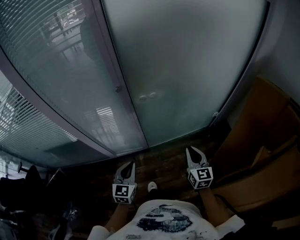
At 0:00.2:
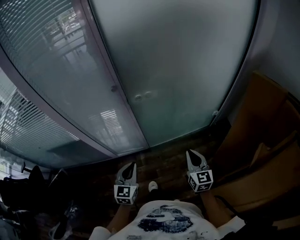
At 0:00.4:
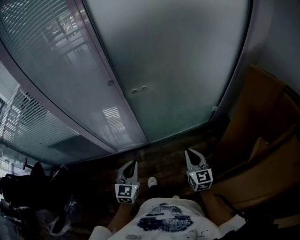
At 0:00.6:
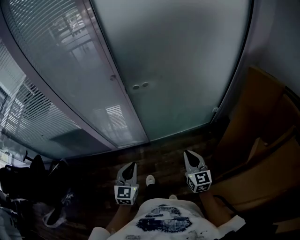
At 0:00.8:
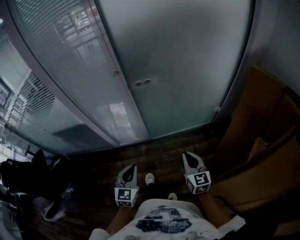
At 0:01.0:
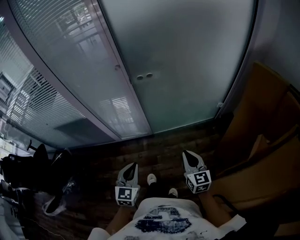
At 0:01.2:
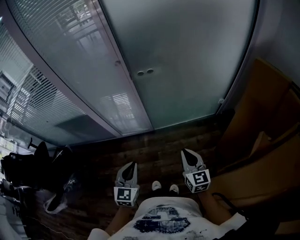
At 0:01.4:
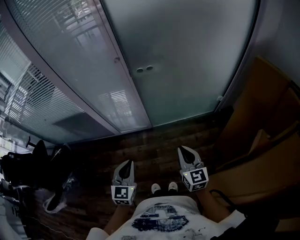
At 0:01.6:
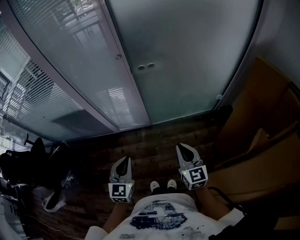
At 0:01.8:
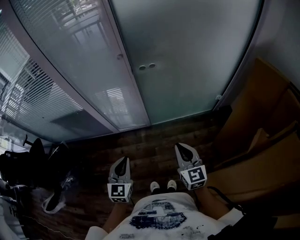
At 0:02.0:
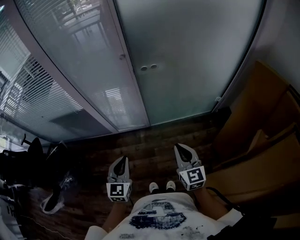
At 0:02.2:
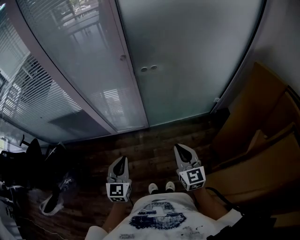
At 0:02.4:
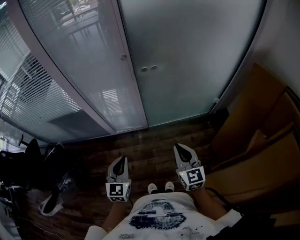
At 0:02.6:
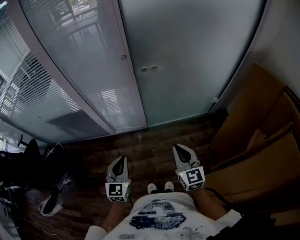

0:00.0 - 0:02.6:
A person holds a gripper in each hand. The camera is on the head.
0:00.0 - 0:01.2: The two grippers go some 15 cm backward.
0:01.2 - 0:02.6: Both grippers travel together to the left, some 5 cm.

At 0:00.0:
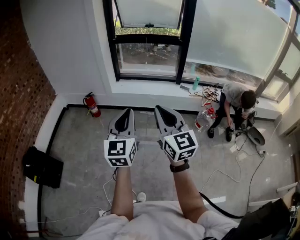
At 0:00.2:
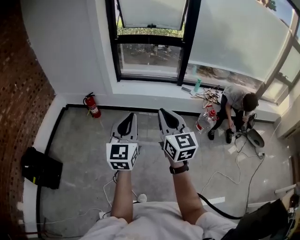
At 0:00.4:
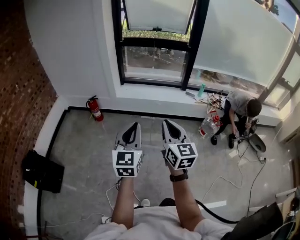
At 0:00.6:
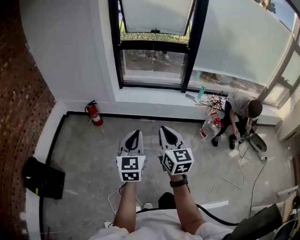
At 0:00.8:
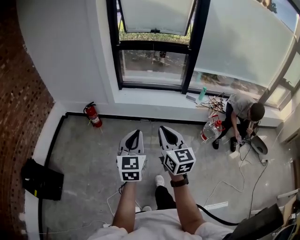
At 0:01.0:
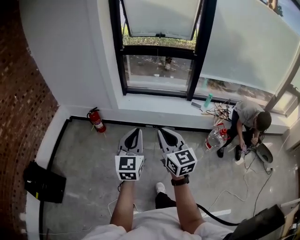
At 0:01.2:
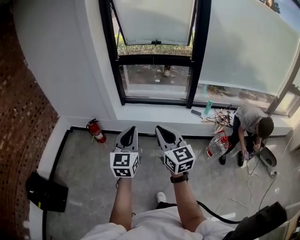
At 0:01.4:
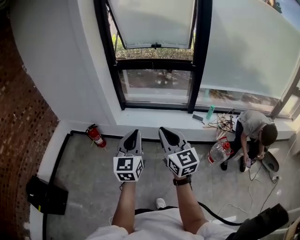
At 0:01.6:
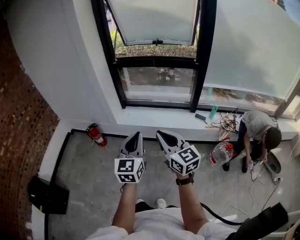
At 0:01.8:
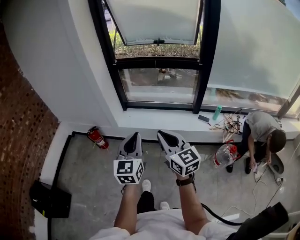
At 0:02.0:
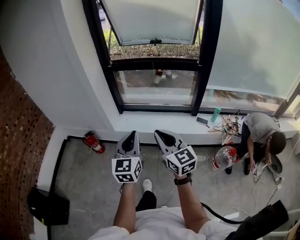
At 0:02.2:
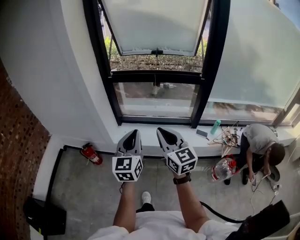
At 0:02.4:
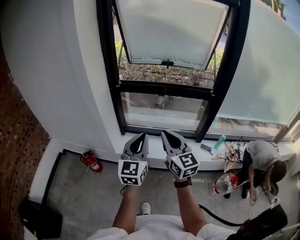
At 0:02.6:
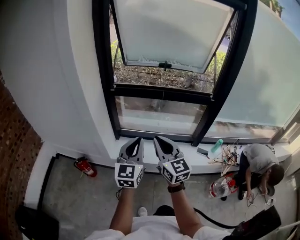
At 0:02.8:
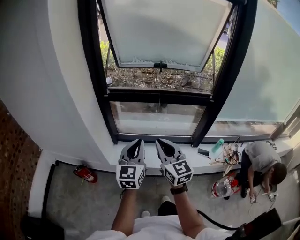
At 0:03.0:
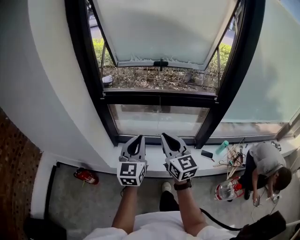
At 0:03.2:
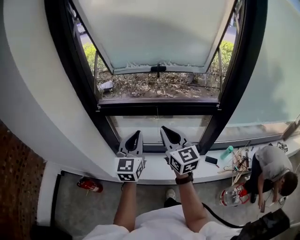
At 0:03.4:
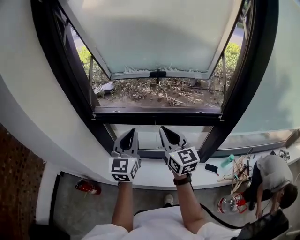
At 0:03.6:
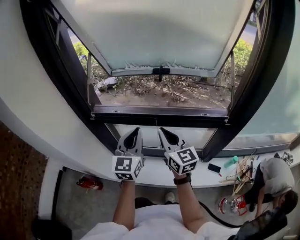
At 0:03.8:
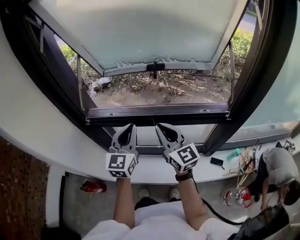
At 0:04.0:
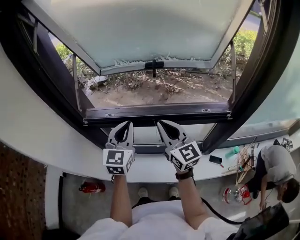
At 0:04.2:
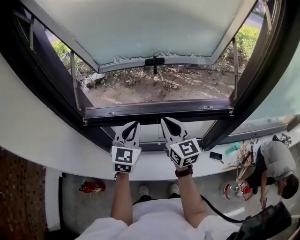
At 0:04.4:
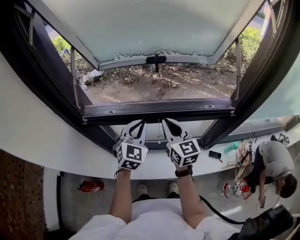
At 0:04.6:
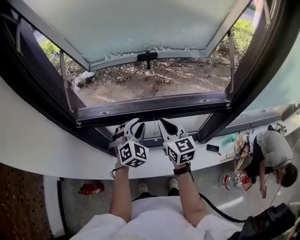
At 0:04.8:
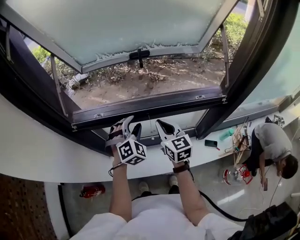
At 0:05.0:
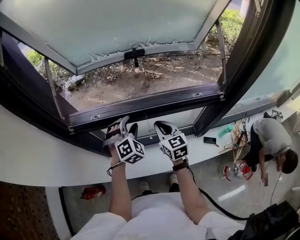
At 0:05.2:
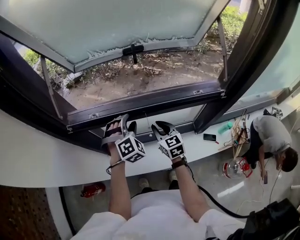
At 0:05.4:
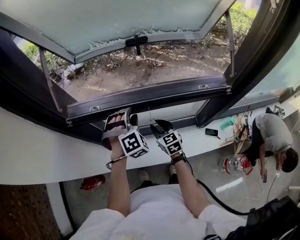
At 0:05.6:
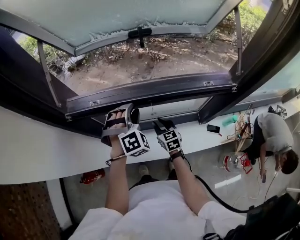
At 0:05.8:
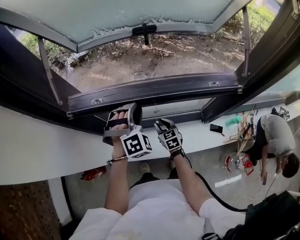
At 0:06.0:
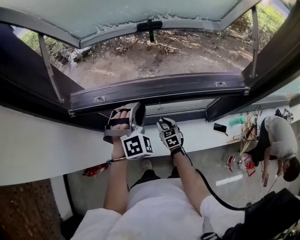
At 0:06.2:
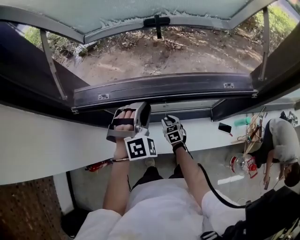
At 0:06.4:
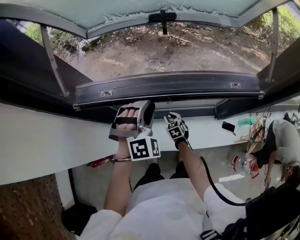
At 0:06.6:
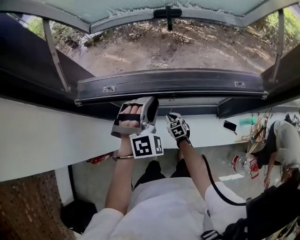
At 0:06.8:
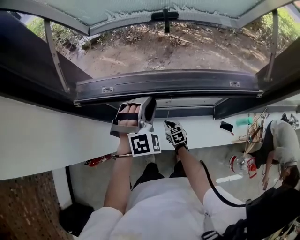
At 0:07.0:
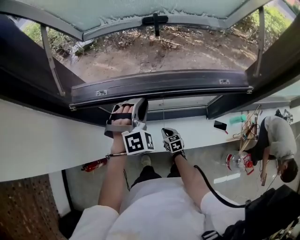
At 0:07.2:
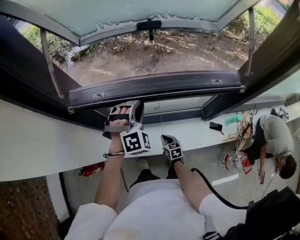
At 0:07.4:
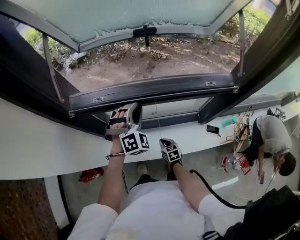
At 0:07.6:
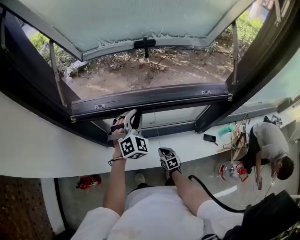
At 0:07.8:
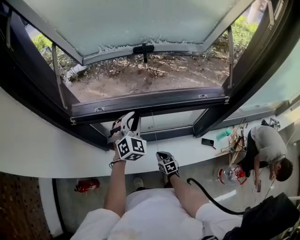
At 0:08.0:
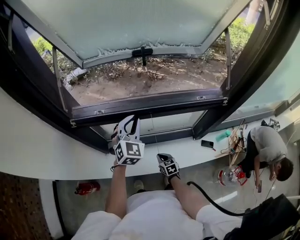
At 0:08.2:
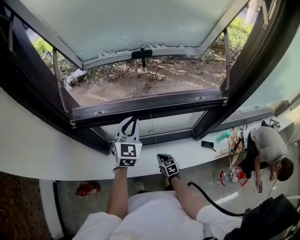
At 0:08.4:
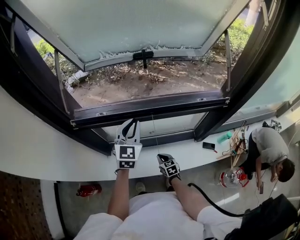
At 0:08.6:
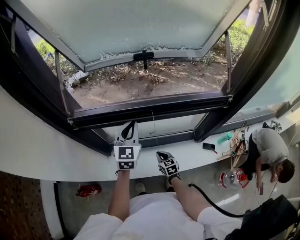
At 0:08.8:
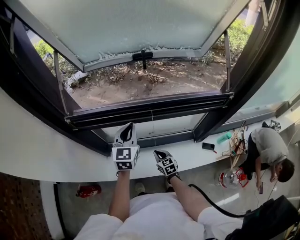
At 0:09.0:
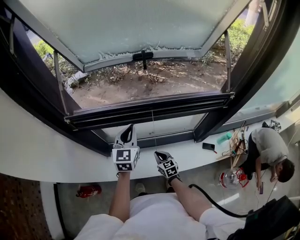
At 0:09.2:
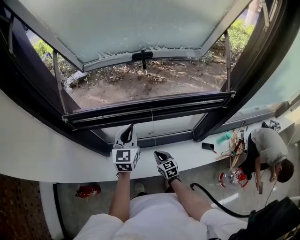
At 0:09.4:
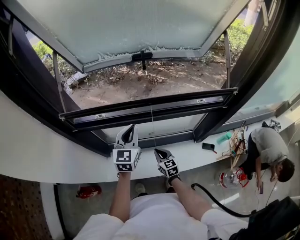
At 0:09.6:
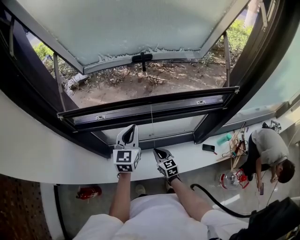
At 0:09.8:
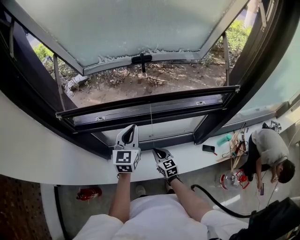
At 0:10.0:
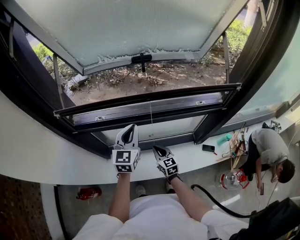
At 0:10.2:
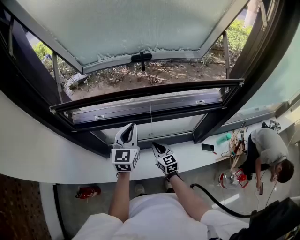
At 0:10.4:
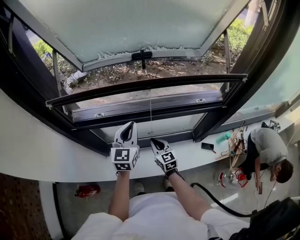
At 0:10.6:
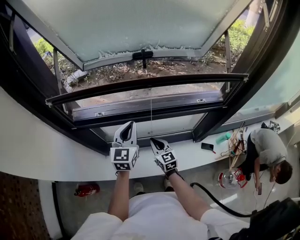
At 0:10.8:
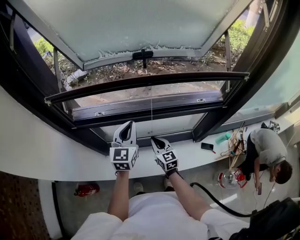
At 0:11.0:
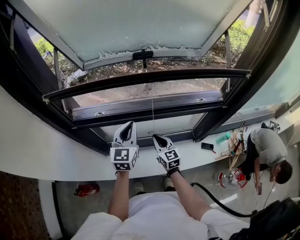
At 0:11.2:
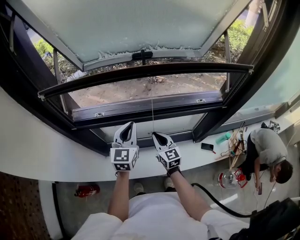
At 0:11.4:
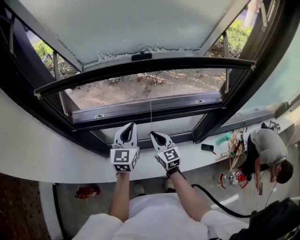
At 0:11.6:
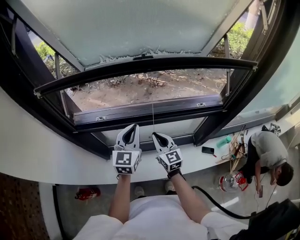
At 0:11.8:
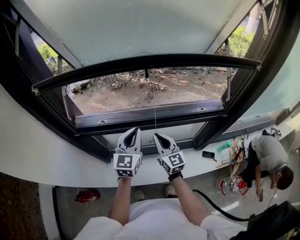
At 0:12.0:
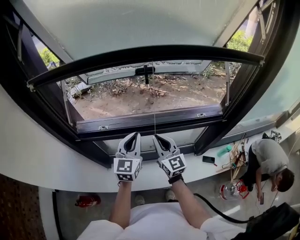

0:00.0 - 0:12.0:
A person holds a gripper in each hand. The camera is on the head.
0:00.0 - 0:01.6: Both grippers move forward, approximately 40 cm.
0:01.6 - 0:03.0: The two grippers travel together, forward, approximately 50 cm.
0:03.0 - 0:04.4: The two grippers go approximately 30 cm forward. The left gripper turns by some 30 degrees.
0:04.4 - 0:06.0: The left gripper heads downward, covering about 5 cm, rotates around the line of its fingers by approximately 40 degrees, clockwise from behind, and opens its fingers; the right gripper travels downward by some 35 cm, tips its fingers downward by approximately 30 degrees, and opens up.
0:06.0 - 0:07.6: The right gripper goes about 15 cm backward and downward, and closes up.
0:07.6 - 0:09.0: The left gripper rolls counterclockwise, seen from behind, by approximately 50 degrees. Meanwhile the right gripper is displaced upward by some 5 cm.
0:09.0 - 0:10.4: The right gripper shifts roughly 10 cm upward and forward.
0:10.4 - 0:12.0: The right gripper heads upward, covering some 15 cm, and swivels about 20 degrees.

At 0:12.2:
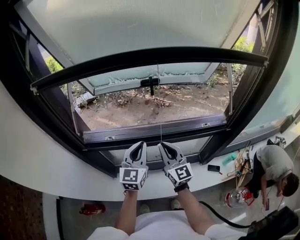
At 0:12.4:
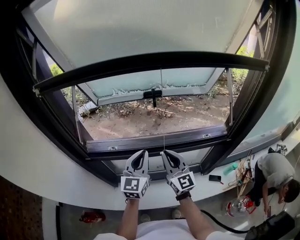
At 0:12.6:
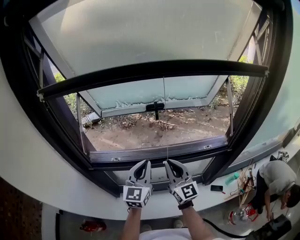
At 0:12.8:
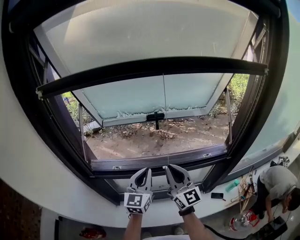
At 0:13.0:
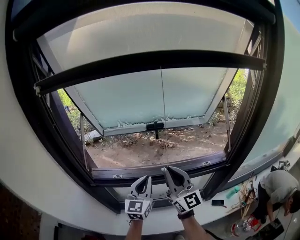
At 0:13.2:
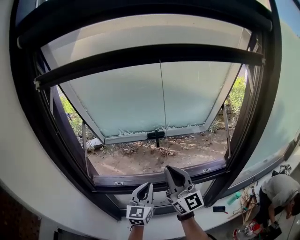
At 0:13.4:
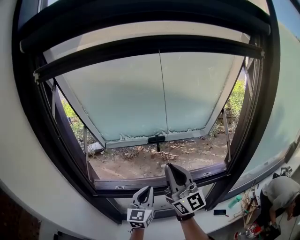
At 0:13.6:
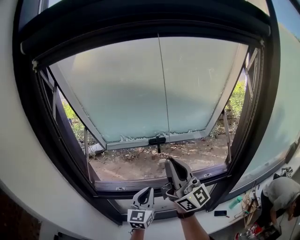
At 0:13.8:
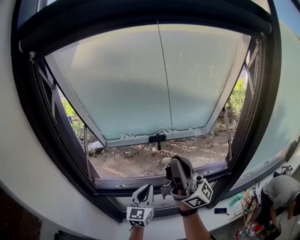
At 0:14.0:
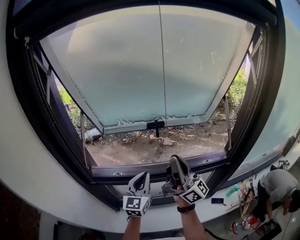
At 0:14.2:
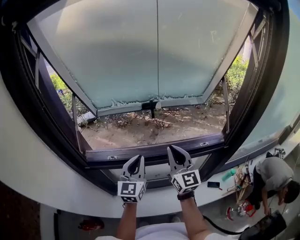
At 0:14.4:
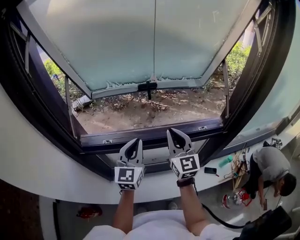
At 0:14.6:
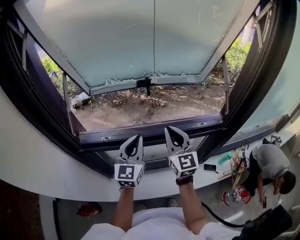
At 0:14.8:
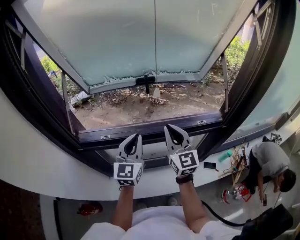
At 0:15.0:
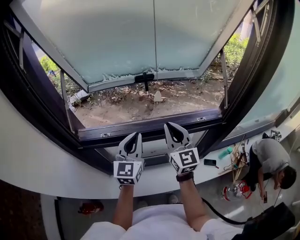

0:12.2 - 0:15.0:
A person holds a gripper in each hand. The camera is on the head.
0:12.2 - 0:13.6: The right gripper travels upward by some 30 cm, and tilts its fingers some 40 degrees upward.
0:13.6 - 0:15.0: The right gripper heads downward, covering approximately 20 cm, and points its fingers approximately 40 degrees further downward.

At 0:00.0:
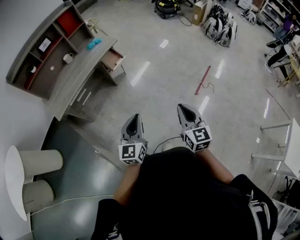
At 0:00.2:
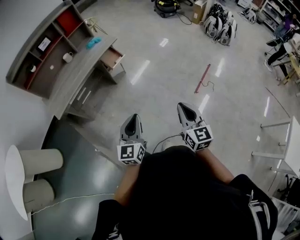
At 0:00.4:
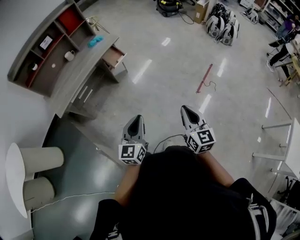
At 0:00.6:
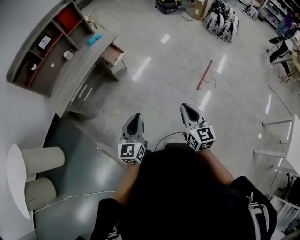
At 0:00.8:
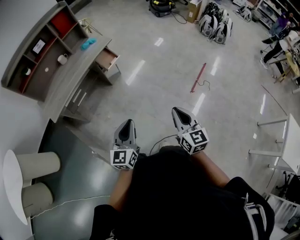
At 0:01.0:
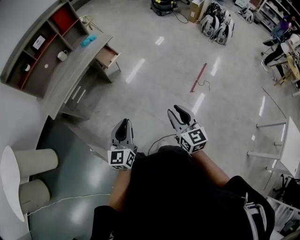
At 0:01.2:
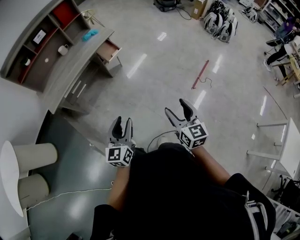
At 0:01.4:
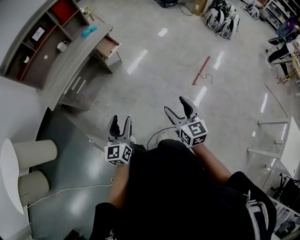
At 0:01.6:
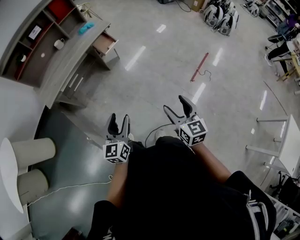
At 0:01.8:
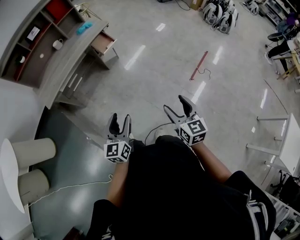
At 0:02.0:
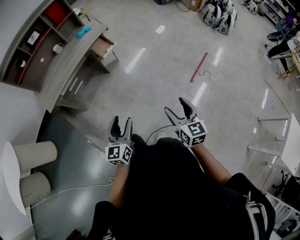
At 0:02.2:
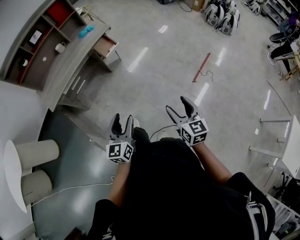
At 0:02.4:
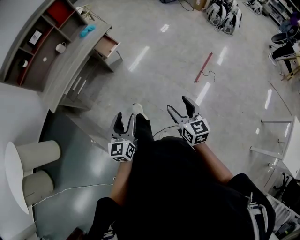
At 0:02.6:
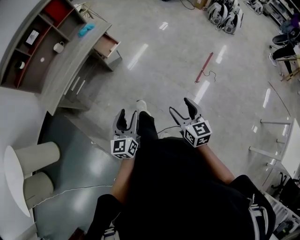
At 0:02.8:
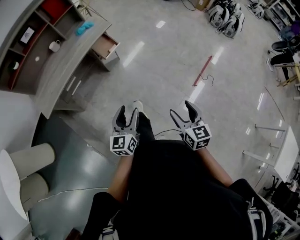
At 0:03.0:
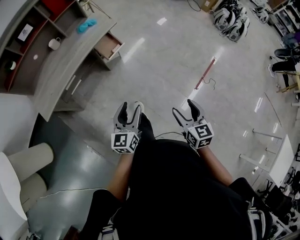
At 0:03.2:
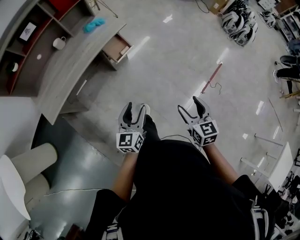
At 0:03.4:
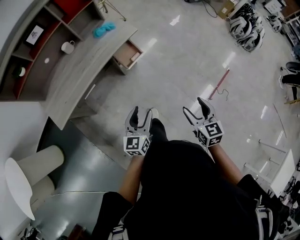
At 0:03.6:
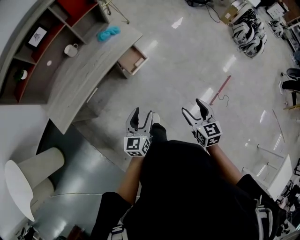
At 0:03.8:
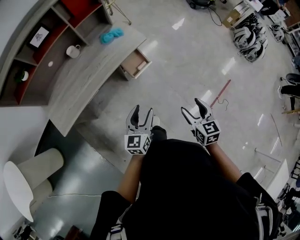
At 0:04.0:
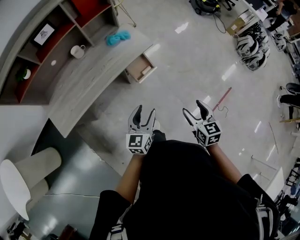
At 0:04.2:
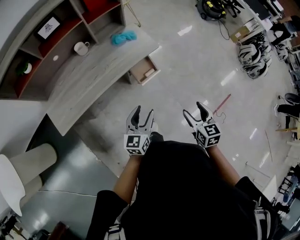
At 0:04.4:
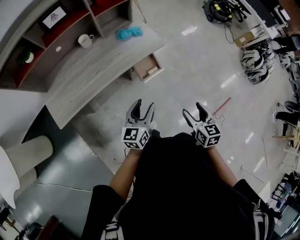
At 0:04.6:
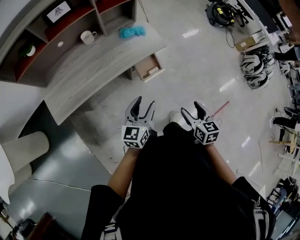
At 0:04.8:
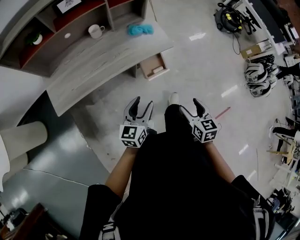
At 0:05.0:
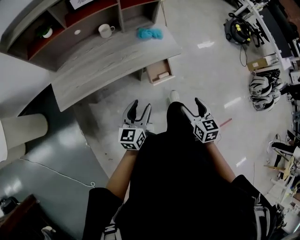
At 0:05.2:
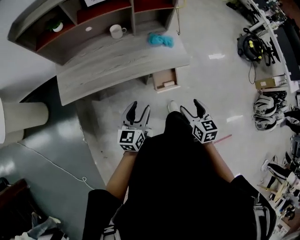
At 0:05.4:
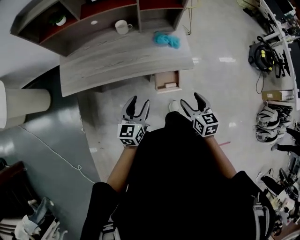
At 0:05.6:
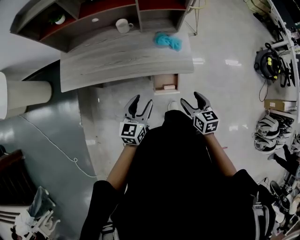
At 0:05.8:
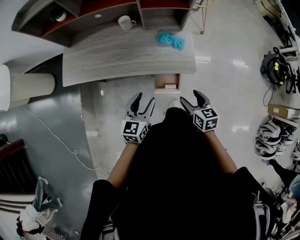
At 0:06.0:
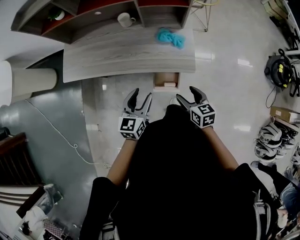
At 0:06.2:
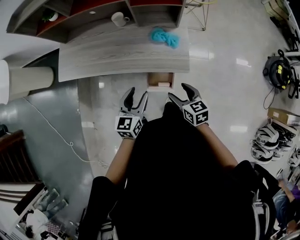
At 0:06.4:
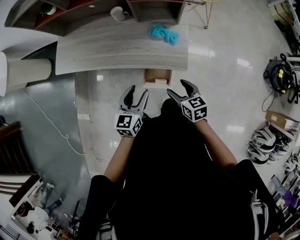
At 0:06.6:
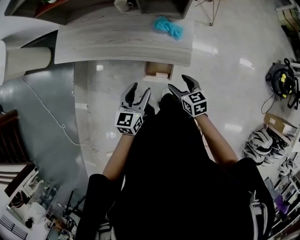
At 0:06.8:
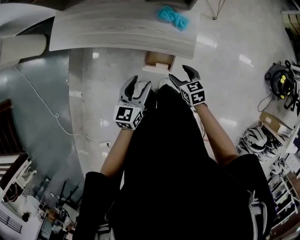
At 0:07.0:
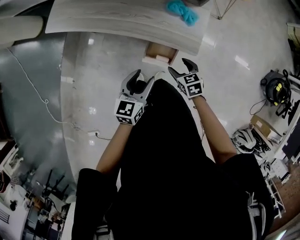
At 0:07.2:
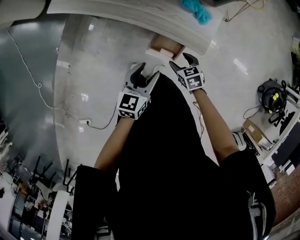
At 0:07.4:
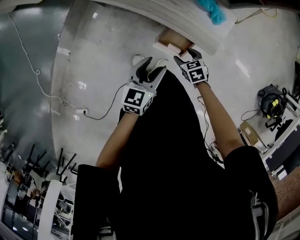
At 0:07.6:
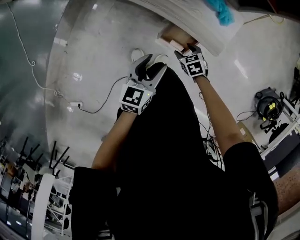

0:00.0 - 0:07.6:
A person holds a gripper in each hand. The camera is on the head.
0:00.0 - 0:01.6: The two grippers go some 5 cm downward. The right gripper opens, while the left gripper opens up.
0:01.6 - 0:03.0: The grippers both shift forward by about 25 cm.
0:03.0 - 0:04.6: The two grippers go approximately 35 cm forward and to the left.
0:04.6 - 0:06.0: The right gripper ends up roughly 30 cm from where it was, and rotates approximately 40 degrees; the left gripper shifts by roughly 20 cm, and swivels about 40 degrees.
0:06.0 - 0:07.6: The left gripper is displaced downward by approximately 15 cm, and turns by roughly 20 degrees, while the right gripper moves downward, approximately 25 cm, and turns by roughly 50 degrees.
